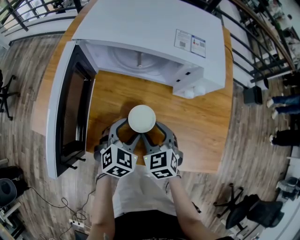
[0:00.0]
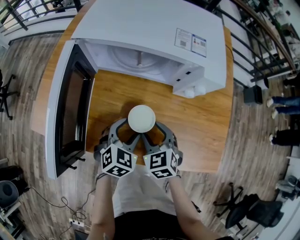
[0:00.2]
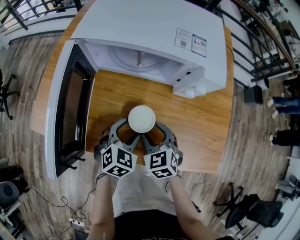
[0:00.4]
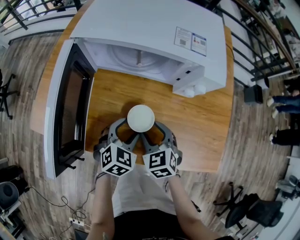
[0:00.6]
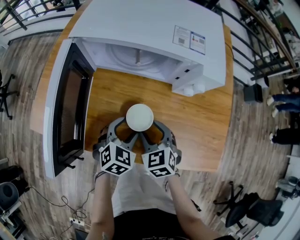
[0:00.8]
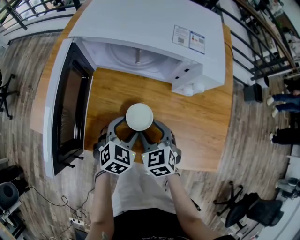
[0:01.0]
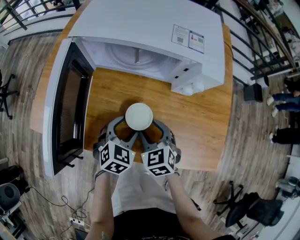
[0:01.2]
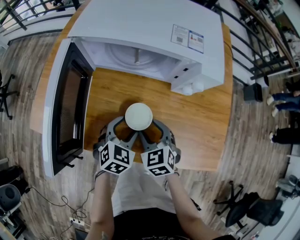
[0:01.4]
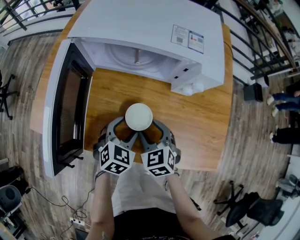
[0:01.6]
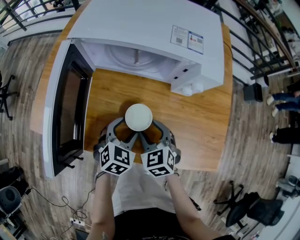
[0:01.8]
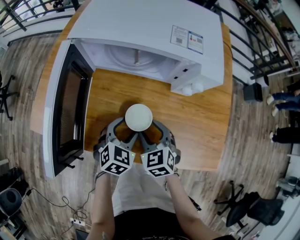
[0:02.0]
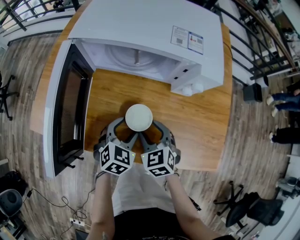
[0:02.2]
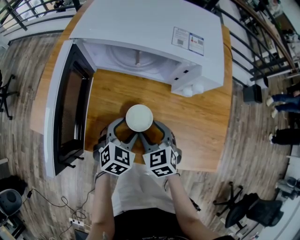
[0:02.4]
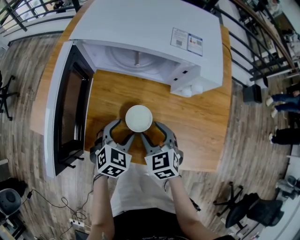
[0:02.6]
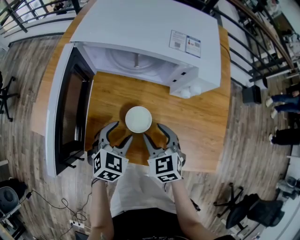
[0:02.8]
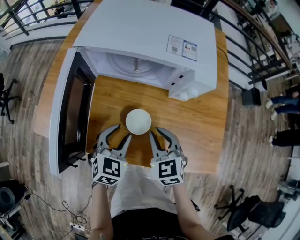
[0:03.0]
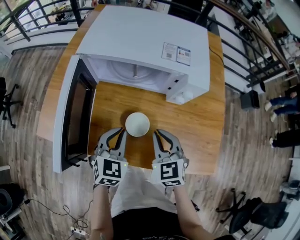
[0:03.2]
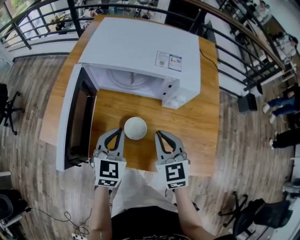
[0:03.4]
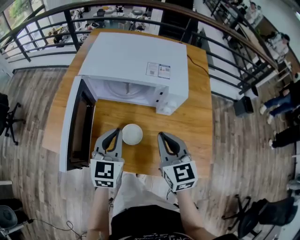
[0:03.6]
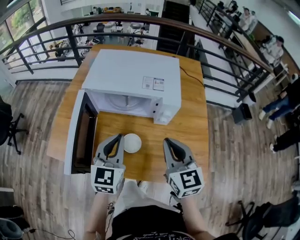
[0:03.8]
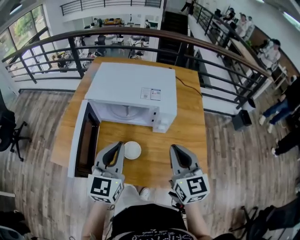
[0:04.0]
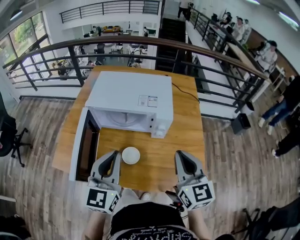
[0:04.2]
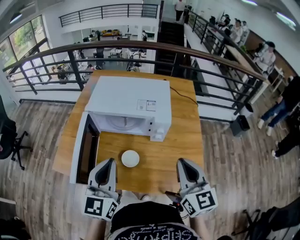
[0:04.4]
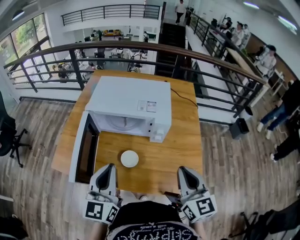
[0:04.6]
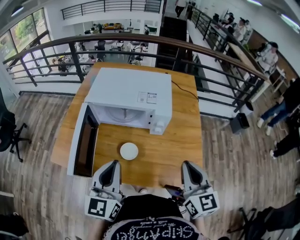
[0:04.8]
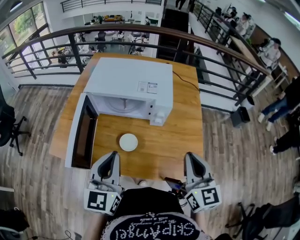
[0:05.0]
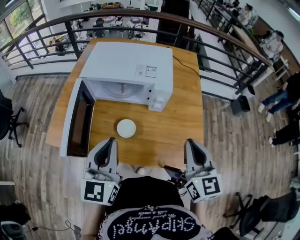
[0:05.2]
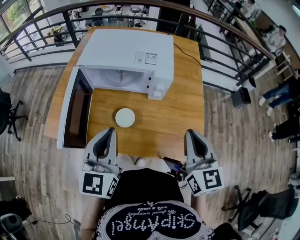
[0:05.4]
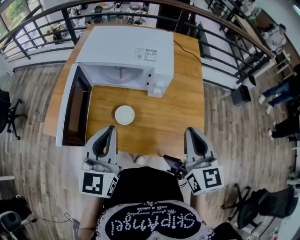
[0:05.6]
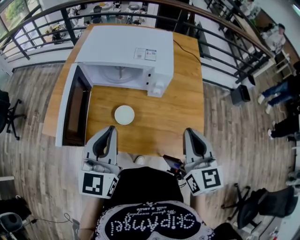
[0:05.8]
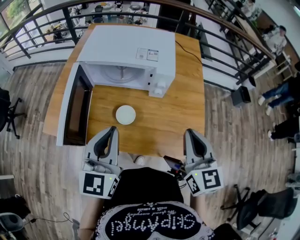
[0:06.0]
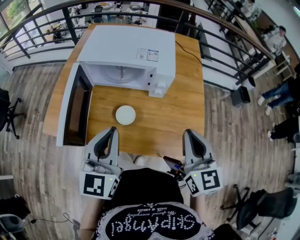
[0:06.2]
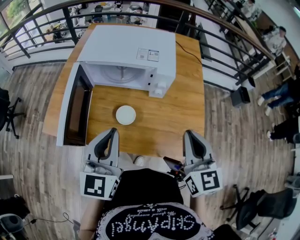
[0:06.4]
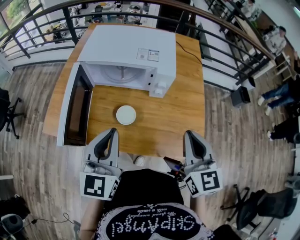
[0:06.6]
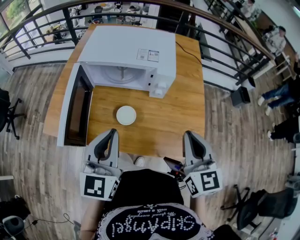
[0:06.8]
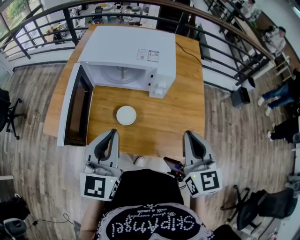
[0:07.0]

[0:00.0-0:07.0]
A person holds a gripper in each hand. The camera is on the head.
0:00.0 to 0:01.4: Both grippers stay about where they are.
0:01.4 to 0:02.8: The grippers make only small movements.
0:02.8 to 0:04.2: The left gripper moves upward, roughly 30 cm, angles its fingers upward, by about 40 degrees, and closes up; the right gripper goes some 30 cm upward and to the right, angles its fingers upward, by about 30 degrees, and closes.
0:04.2 to 0:05.6: The left gripper shifts by approximately 5 cm, while the right gripper changes place by roughly 5 cm.
0:05.6 to 0:07.0: There are only small adjustments of the grippers.

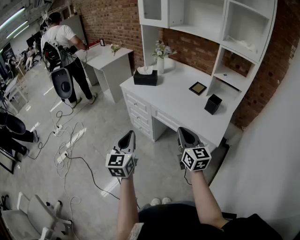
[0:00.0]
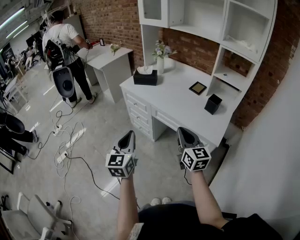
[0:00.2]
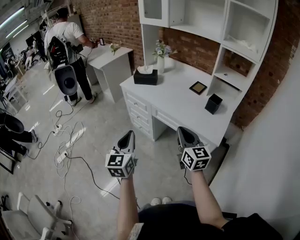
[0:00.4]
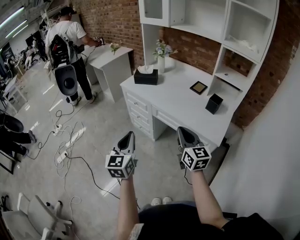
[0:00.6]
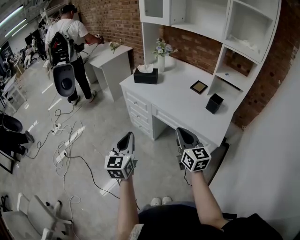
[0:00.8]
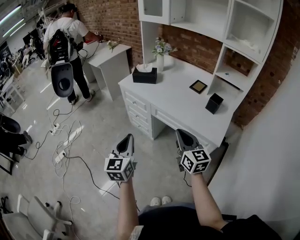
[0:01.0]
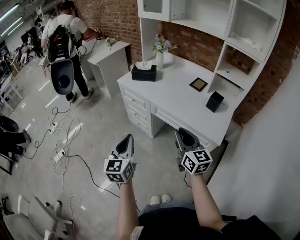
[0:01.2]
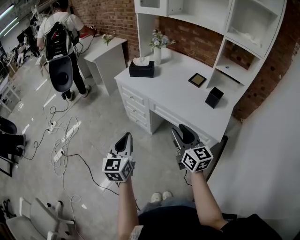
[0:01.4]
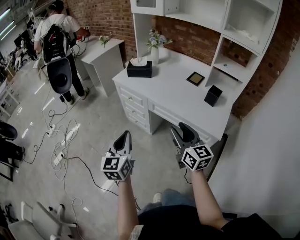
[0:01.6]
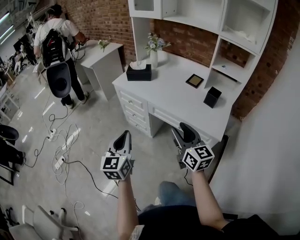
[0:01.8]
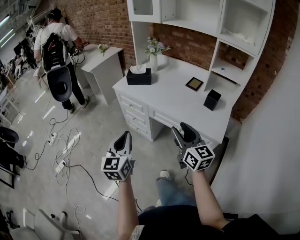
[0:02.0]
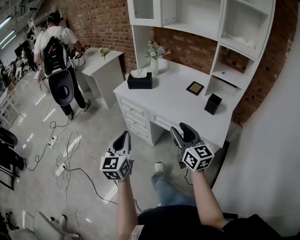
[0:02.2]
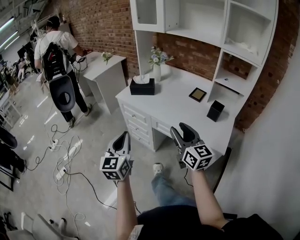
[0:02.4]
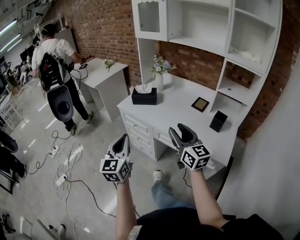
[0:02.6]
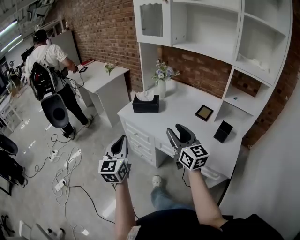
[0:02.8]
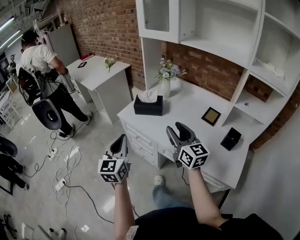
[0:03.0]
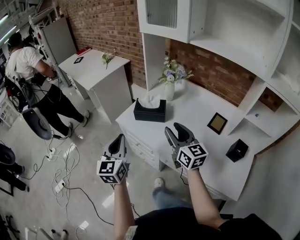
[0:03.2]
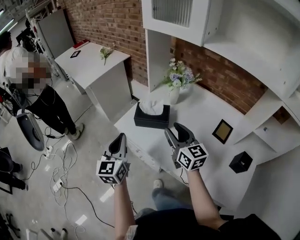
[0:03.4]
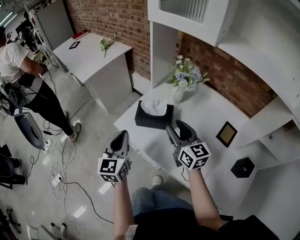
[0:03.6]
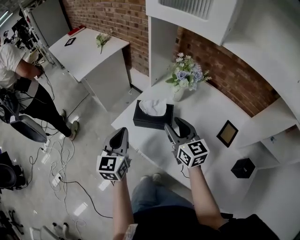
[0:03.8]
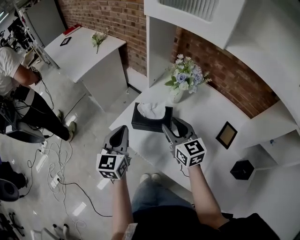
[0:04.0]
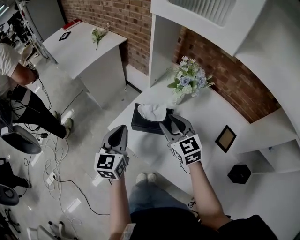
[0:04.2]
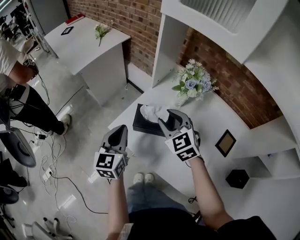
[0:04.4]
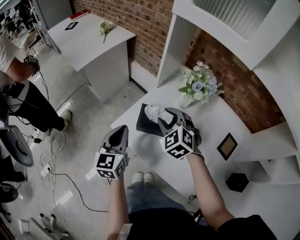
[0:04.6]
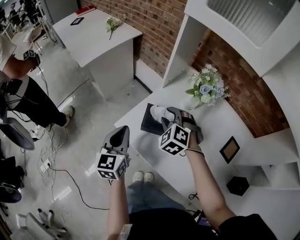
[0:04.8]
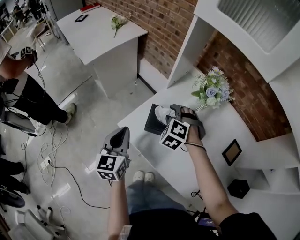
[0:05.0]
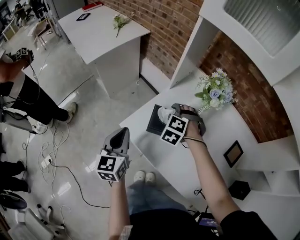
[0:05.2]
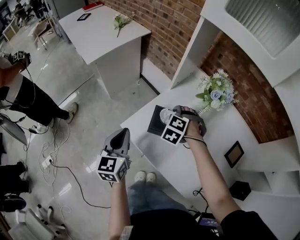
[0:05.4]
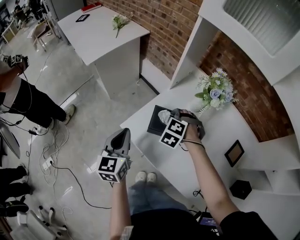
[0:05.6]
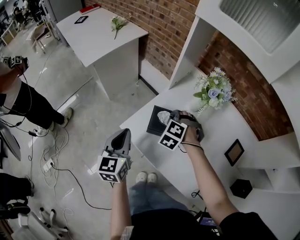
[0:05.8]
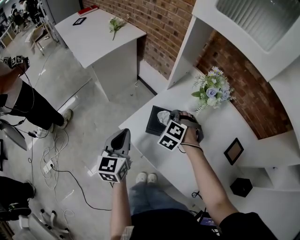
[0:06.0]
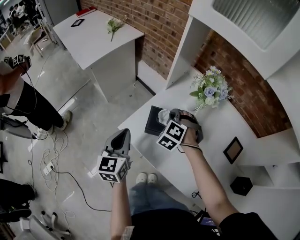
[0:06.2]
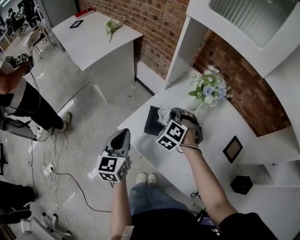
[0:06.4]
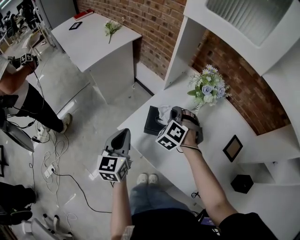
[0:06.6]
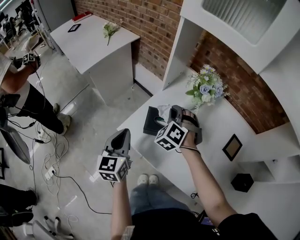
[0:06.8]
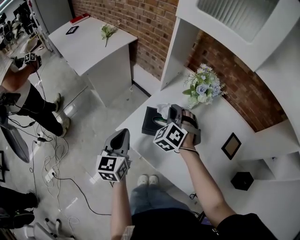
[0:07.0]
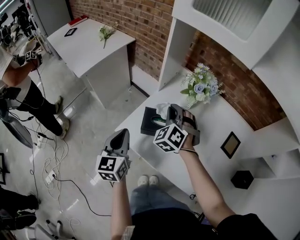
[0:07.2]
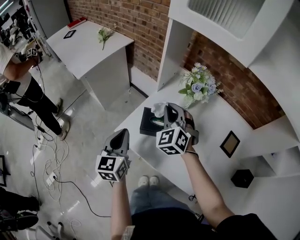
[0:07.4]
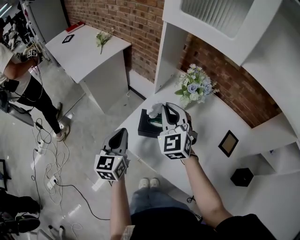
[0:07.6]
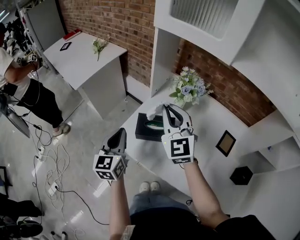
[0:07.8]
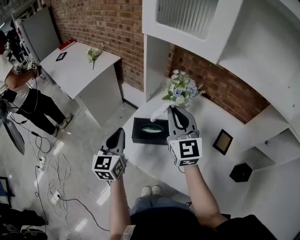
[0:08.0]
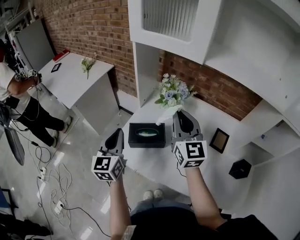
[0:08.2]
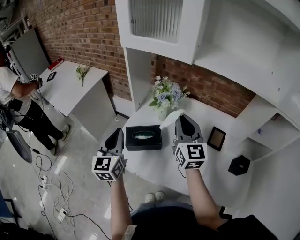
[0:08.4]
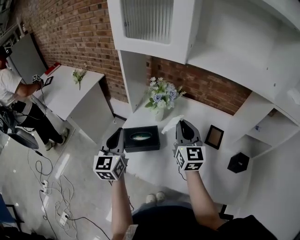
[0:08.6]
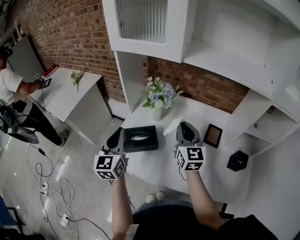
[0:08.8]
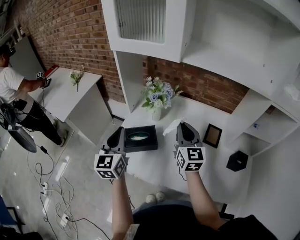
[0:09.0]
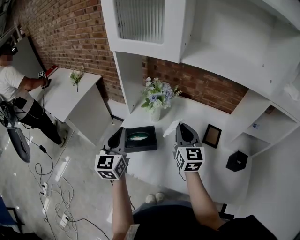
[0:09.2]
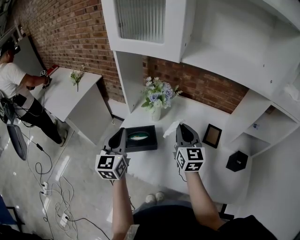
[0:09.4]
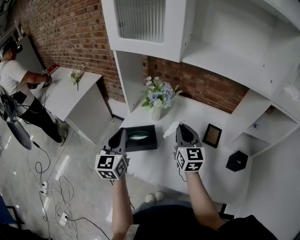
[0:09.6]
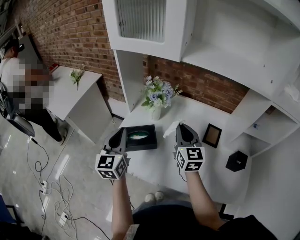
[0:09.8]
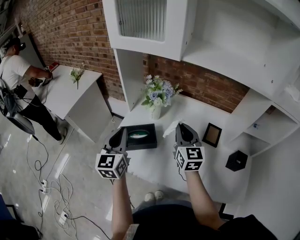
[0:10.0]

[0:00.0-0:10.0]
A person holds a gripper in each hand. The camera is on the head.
0:00.0 to 0:01.4: The right gripper opens up.
0:01.4 to 0:02.8: The two grippers go some 20 cm forward.
0:02.8 to 0:04.2: The two grippers travel together, forward, some 40 cm. The right gripper changes its angle by about 30 degrees.
0:04.2 to 0:05.8: The right gripper travels downward, forward and to the left by some 15 cm, angles its fingers downward, by roughly 40 degrees, and closes its fingers; the left gripper shifts about 5 cm to the left.
0:05.8 to 0:07.2: The right gripper shifts roughly 10 cm upward, and swivels about 30 degrees.
0:07.2 to 0:08.6: The left gripper shifts roughly 15 cm upward and to the right, while the right gripper goes approximately 20 cm to the right, upward and backward, and rolls clockwise, seen from behind, by roughly 60 degrees.
0:08.6 to 0:10.0: The grippers move only a little.

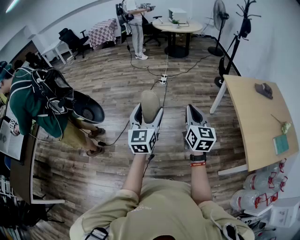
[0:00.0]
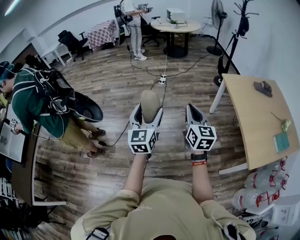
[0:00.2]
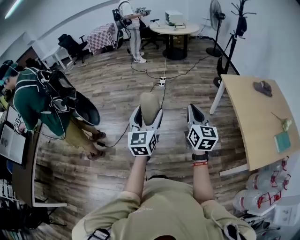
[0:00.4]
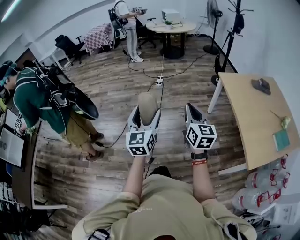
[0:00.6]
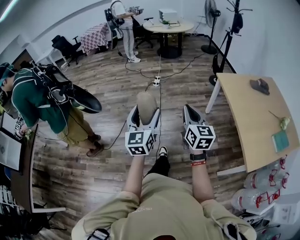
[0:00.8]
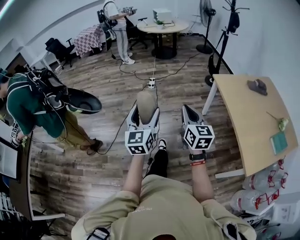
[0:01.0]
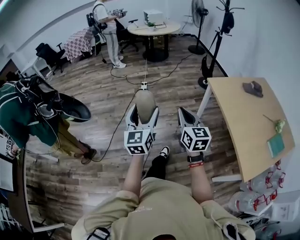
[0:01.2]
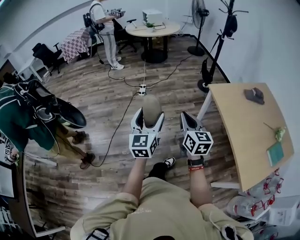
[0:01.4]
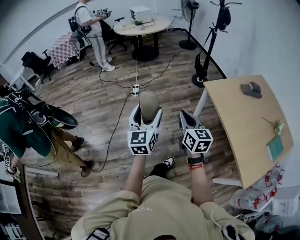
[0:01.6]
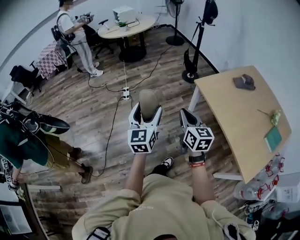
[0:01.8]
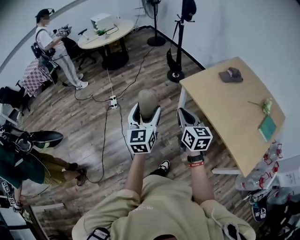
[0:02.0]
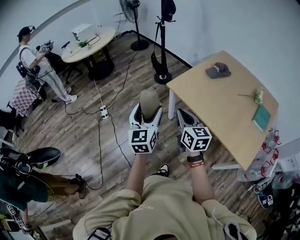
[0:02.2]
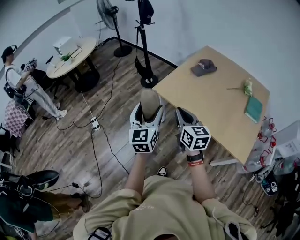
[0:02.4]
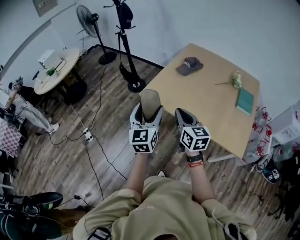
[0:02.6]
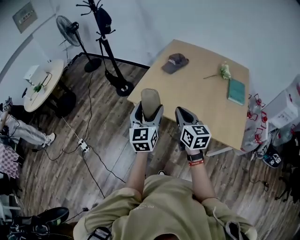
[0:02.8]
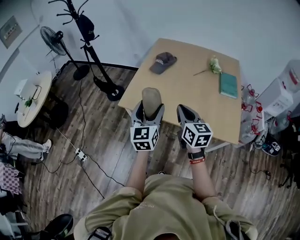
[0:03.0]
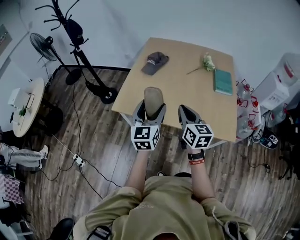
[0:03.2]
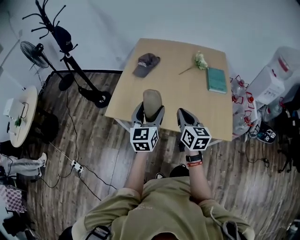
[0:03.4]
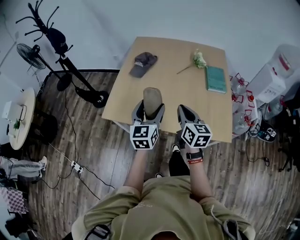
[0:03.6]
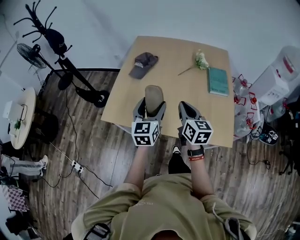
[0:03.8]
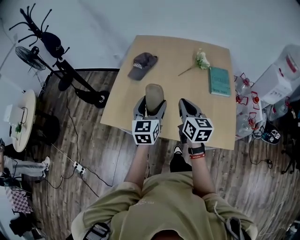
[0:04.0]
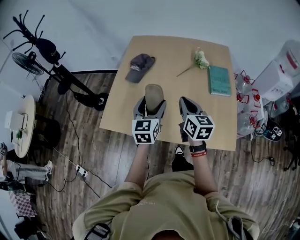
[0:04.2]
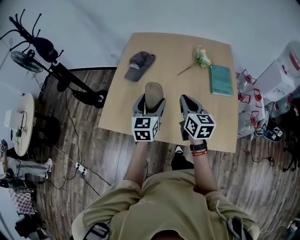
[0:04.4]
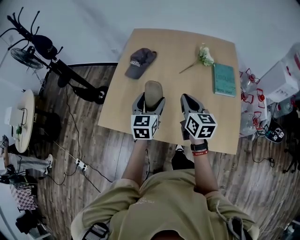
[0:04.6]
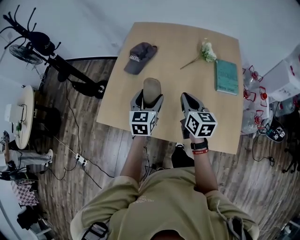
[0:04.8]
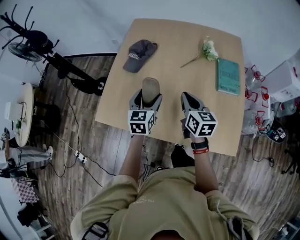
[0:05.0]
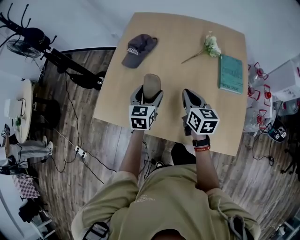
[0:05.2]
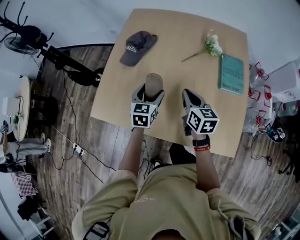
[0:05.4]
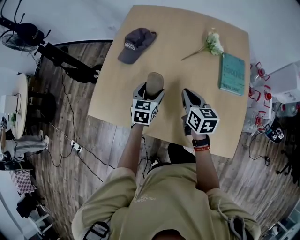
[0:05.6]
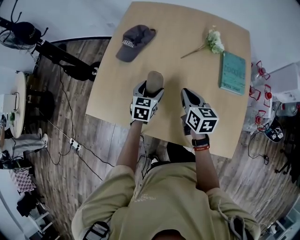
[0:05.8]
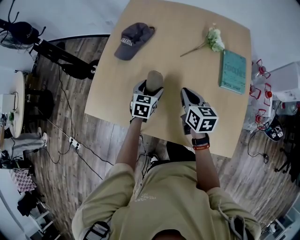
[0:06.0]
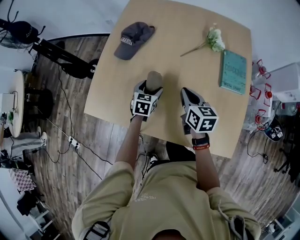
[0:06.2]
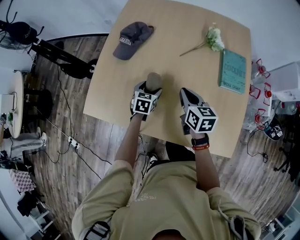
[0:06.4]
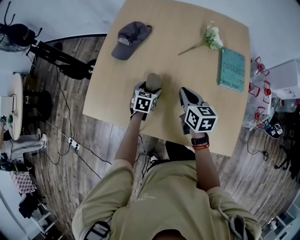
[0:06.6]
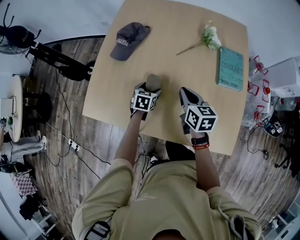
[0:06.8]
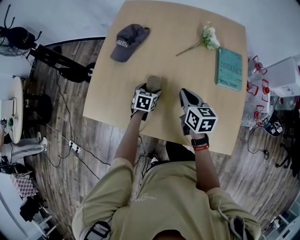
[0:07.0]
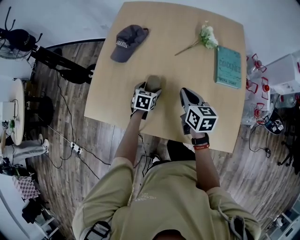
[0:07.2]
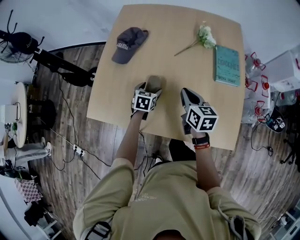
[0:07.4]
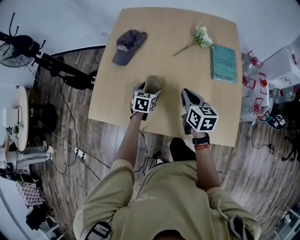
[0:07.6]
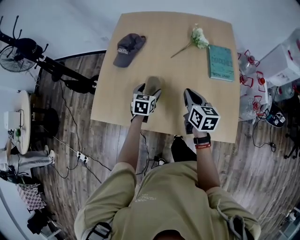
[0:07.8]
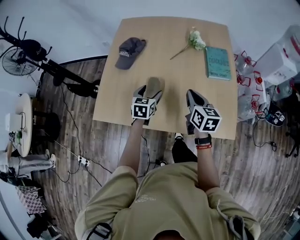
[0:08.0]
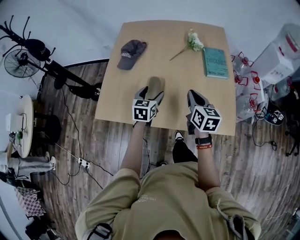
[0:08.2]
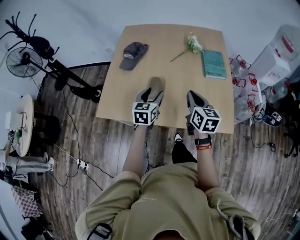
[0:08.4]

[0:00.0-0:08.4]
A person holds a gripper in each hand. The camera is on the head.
0:00.0 to 0:01.4: The two grippers go about 30 cm forward and to the right.
0:01.4 to 0:02.8: The left gripper ends up roughly 50 cm from where it was, and turns by approximately 50 degrees; the right gripper changes place by some 40 cm, and swivels about 50 degrees.
0:02.8 to 0:04.2: Both grippers move forward and to the right, about 35 cm. The left gripper turns by approximately 20 degrees.
0:04.2 to 0:05.6: The left gripper heads downward and forward, covering about 25 cm, and swivels approximately 20 degrees. Meanwhile the right gripper moves forward and downward, some 20 cm.
0:05.6 to 0:07.0: The left gripper moves downward, about 15 cm.
0:07.0 to 0:08.4: The left gripper shifts roughly 30 cm upward and backward, and changes its angle by roughly 30 degrees. Meanwhile the right gripper shifts about 25 cm backward and upward.
